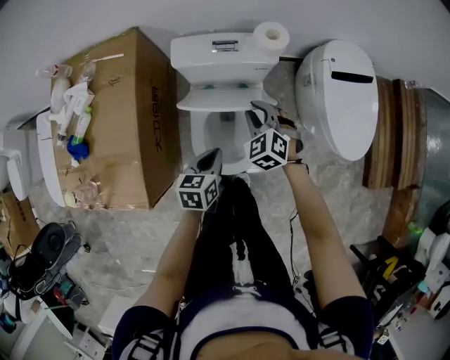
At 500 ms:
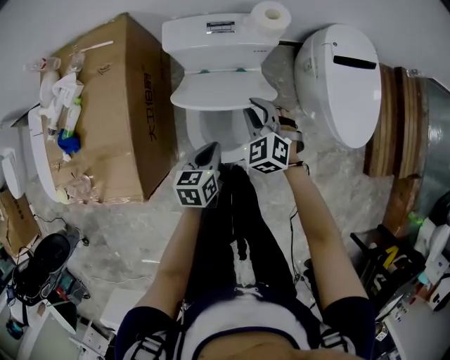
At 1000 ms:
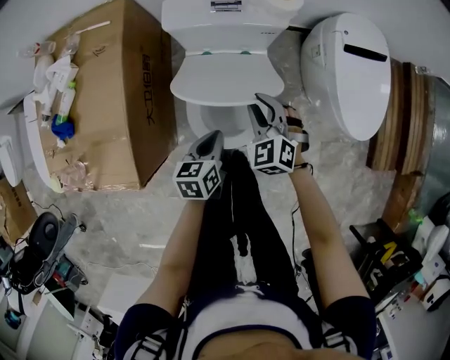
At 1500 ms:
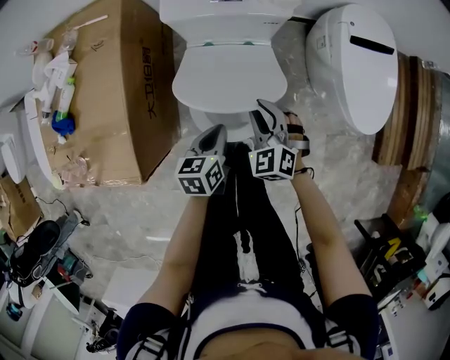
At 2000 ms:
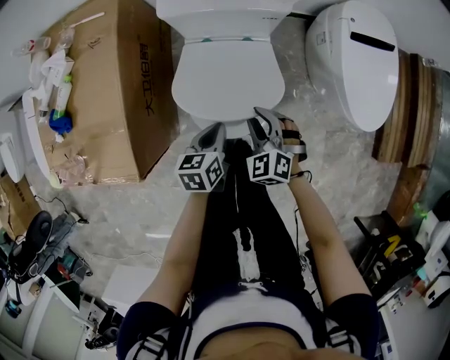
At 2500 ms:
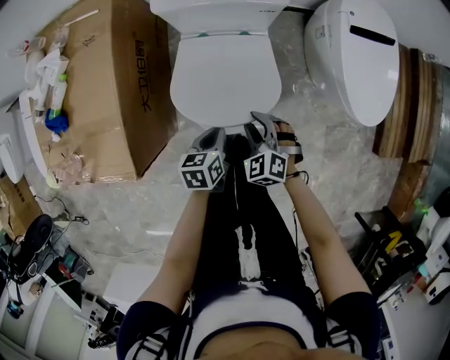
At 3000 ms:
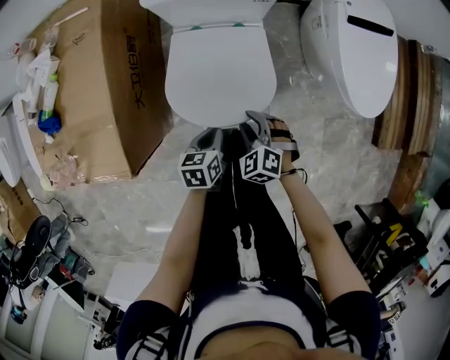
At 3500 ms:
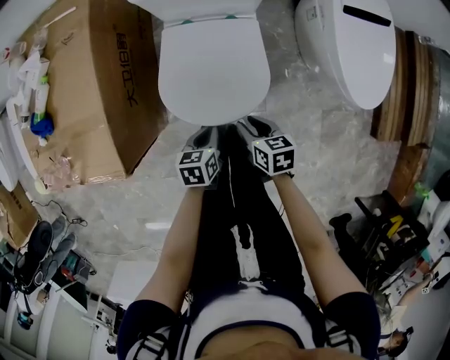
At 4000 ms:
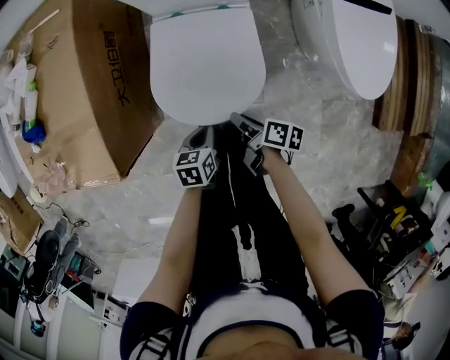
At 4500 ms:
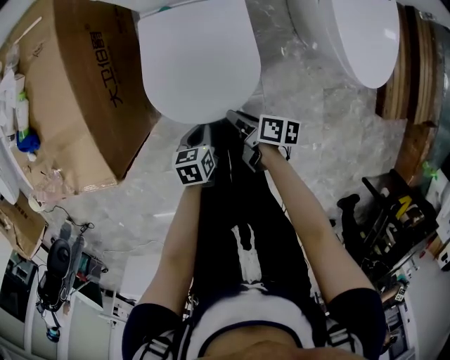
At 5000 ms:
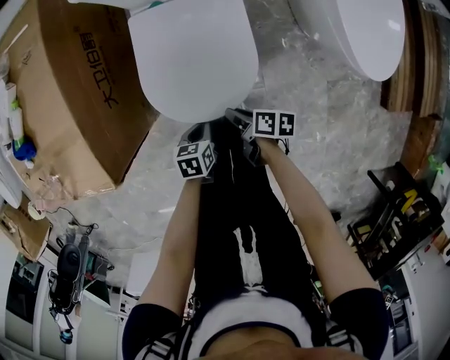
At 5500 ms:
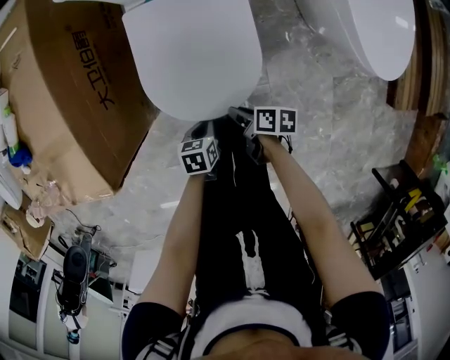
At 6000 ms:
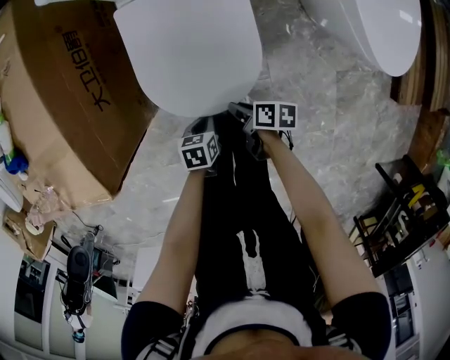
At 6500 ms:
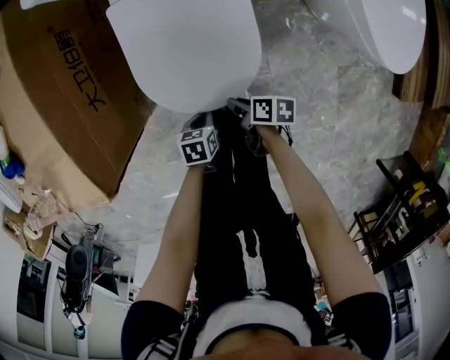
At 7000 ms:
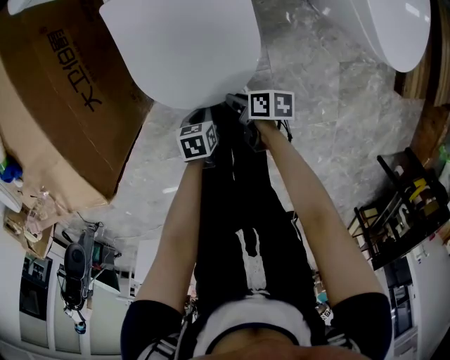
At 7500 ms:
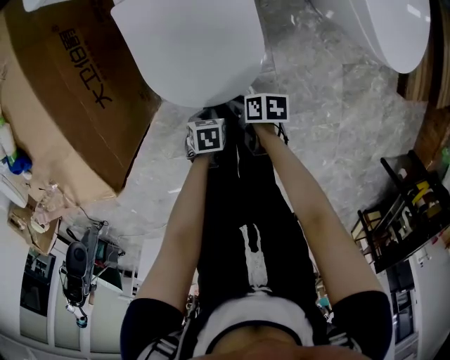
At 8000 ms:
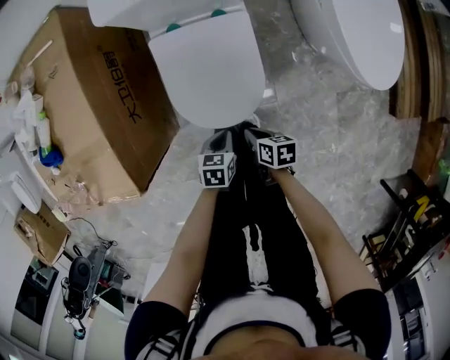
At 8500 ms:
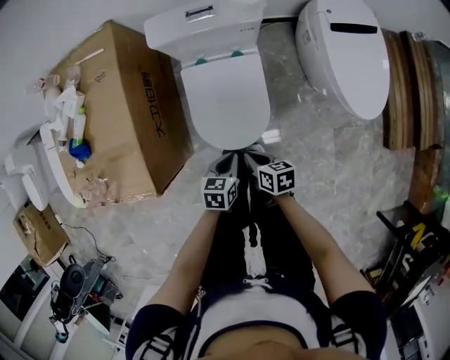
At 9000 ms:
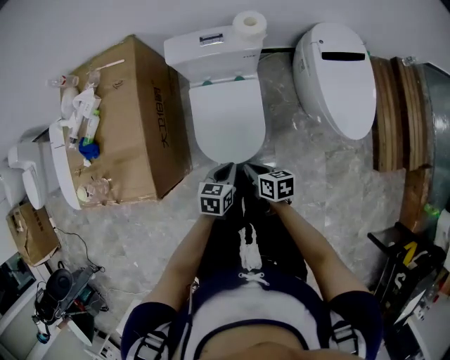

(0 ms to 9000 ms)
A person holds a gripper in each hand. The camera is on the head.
0 ms - 2000 ms: The right gripper heads backward and downward, covering approximately 15 cm, while the left gripper moves downward, approximately 5 cm.
2000 ms - 4500 ms: The two grippers go about 20 cm downward and backward. The right gripper rolls clockwise, seen from behind, by roughly 110 degrees.
4500 ms - 7000 ms: The two grippers go about 15 cm downward.
7000 ms - 9000 ms: Both grippers move upward, about 35 cm. The left gripper rotates approximately 30 degrees, while the right gripper turns by roughly 40 degrees.

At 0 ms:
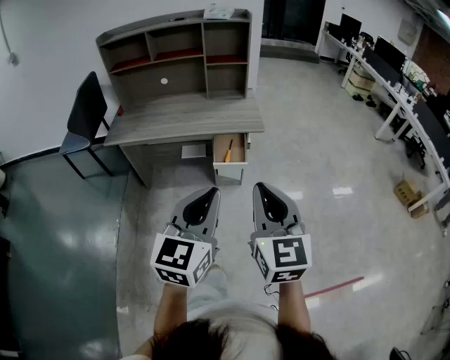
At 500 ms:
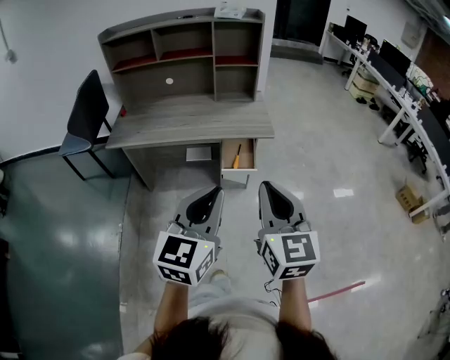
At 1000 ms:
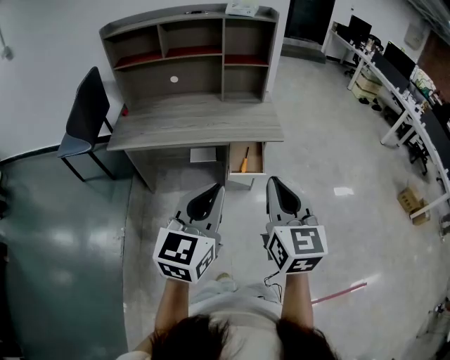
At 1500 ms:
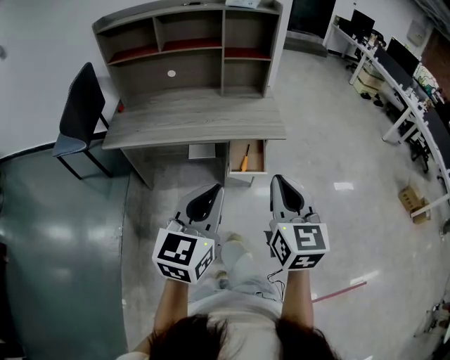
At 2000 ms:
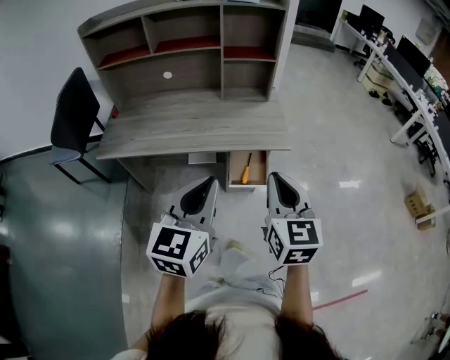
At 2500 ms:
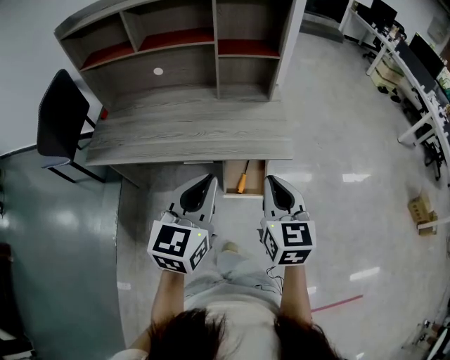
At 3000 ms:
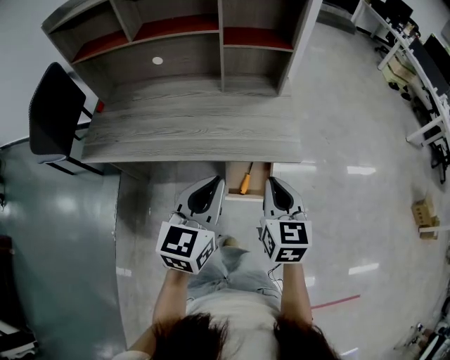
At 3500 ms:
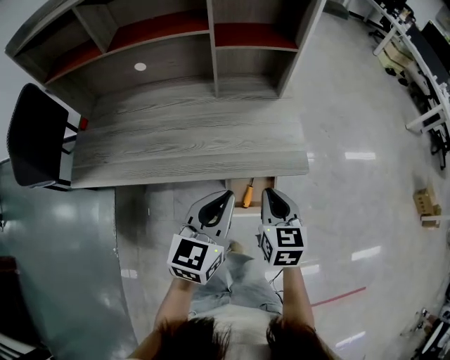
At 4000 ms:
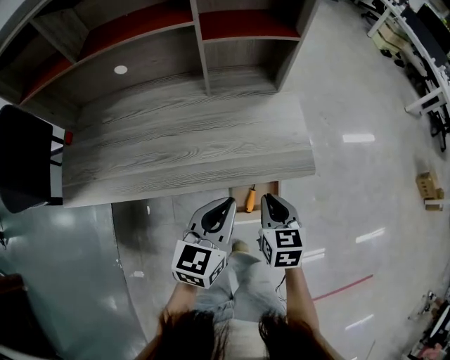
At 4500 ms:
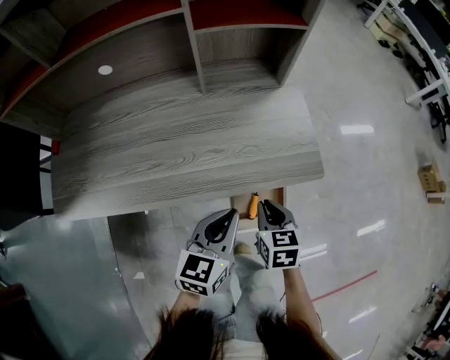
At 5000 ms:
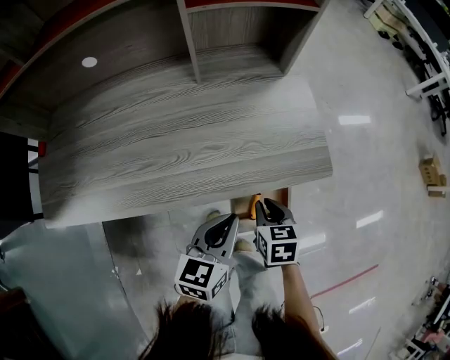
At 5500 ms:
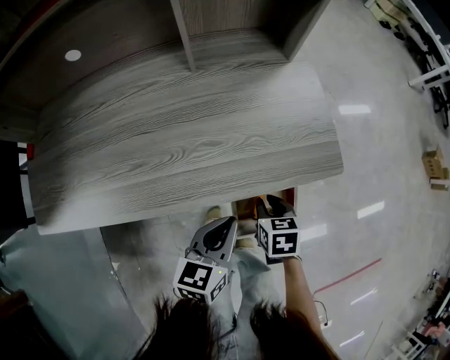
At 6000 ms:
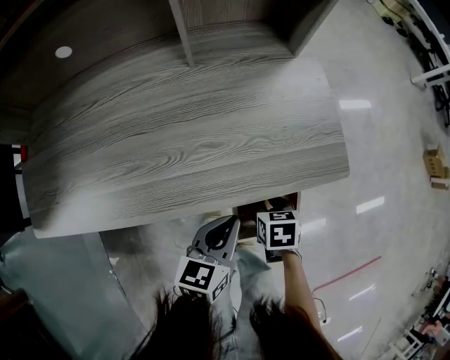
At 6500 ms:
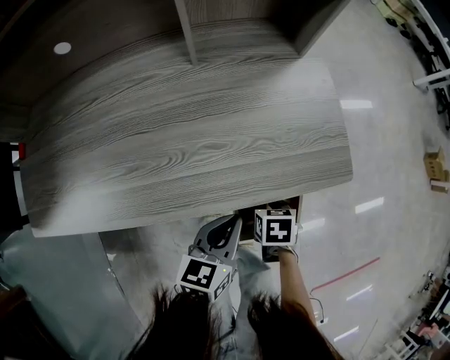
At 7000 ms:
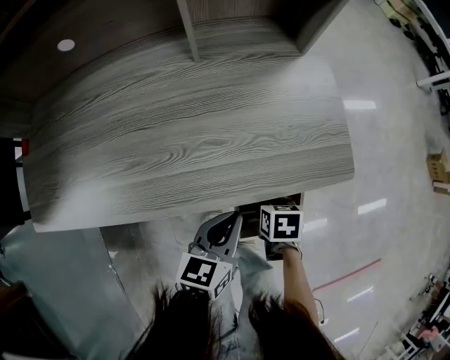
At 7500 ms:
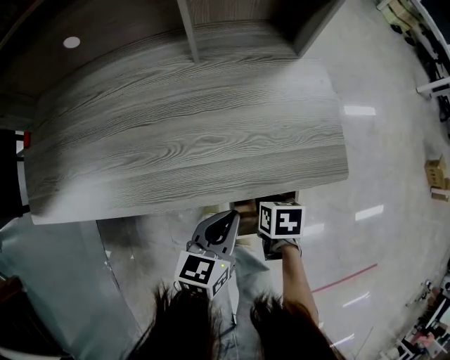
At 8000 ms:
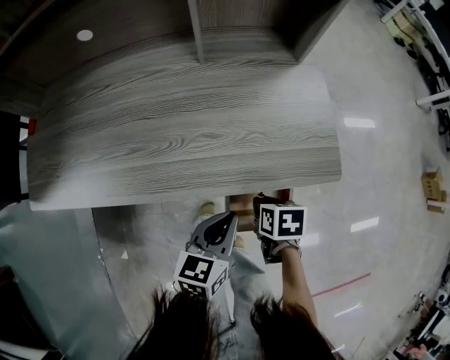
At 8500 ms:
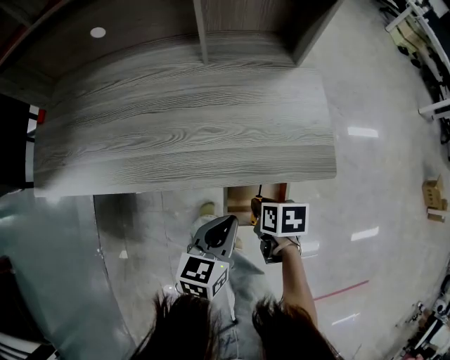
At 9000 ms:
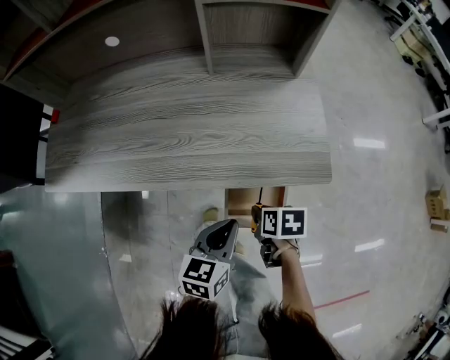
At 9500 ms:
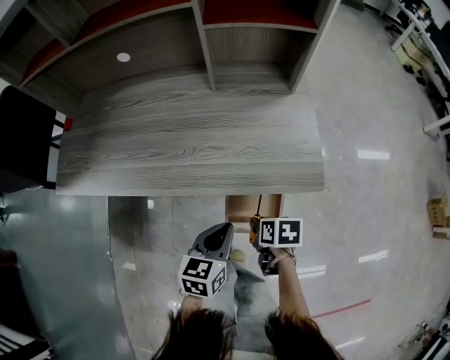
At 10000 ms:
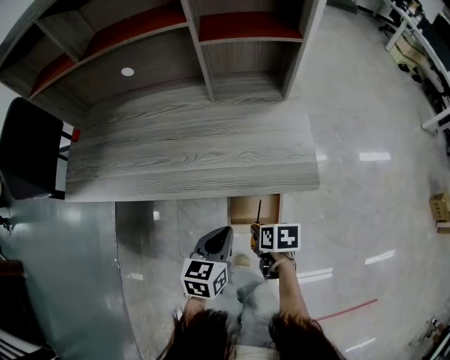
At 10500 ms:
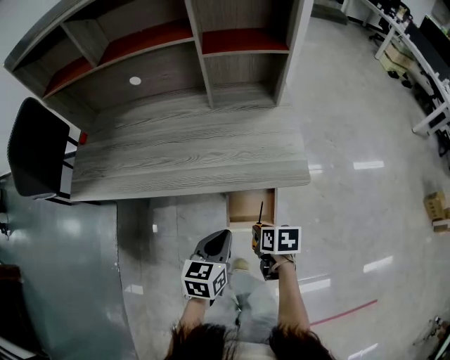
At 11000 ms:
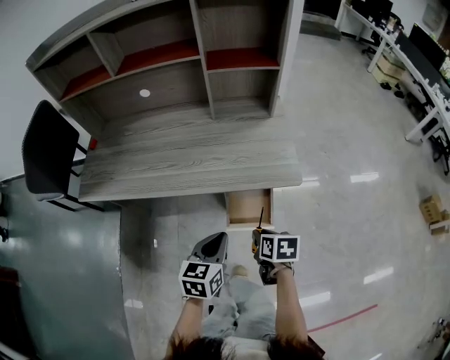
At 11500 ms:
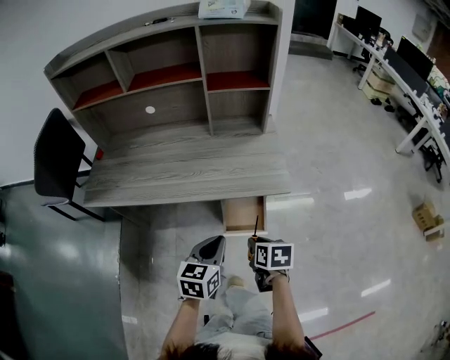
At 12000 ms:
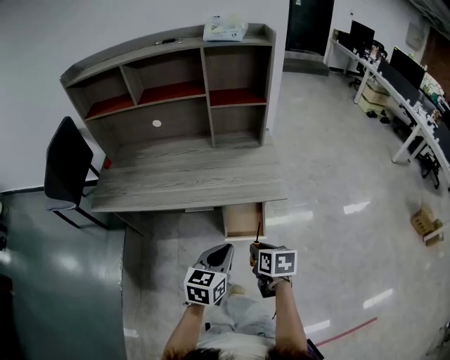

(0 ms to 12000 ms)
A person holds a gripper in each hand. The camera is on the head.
0 ms - 2000 ms: The left gripper moves forward and to the left, roughly 30 cm; the right gripper shifts about 25 cm forward.
2000 ms - 4000 ms: The right gripper goes some 35 cm downward and forward, and changes its angle by some 30 degrees, while the left gripper moves forward and downward, about 35 cm.
4000 ms - 6000 ms: The two grippers go approximately 20 cm downward. The right gripper rotates approximately 30 degrees.
6000 ms - 8000 ms: There are only small adjustments of the grippers.
8000 ms - 10000 ms: The left gripper travels upward by some 5 cm. The right gripper travels backward and upward by some 10 cm.
10000 ms - 12000 ms: The two grippers go some 20 cm upward and backward. The right gripper changes its angle by approximately 20 degrees.

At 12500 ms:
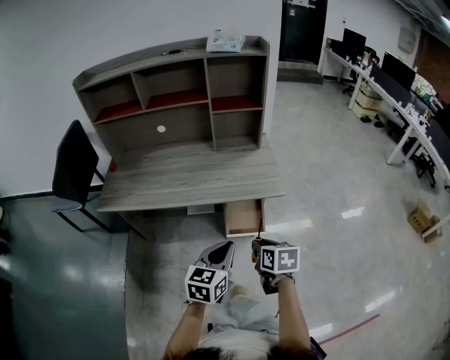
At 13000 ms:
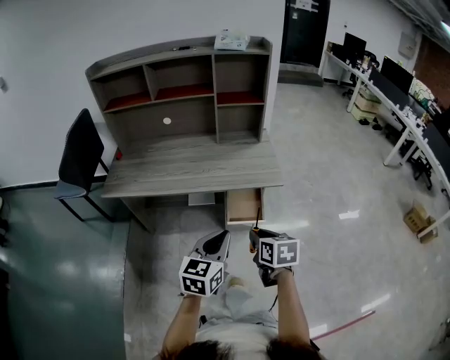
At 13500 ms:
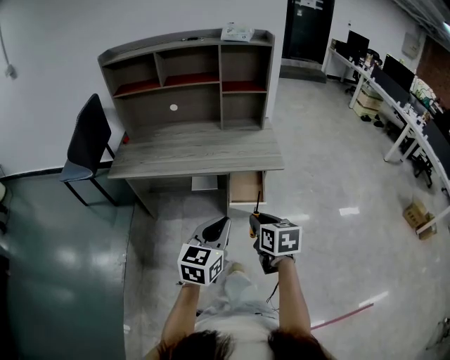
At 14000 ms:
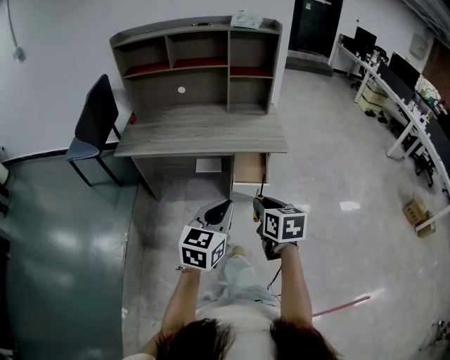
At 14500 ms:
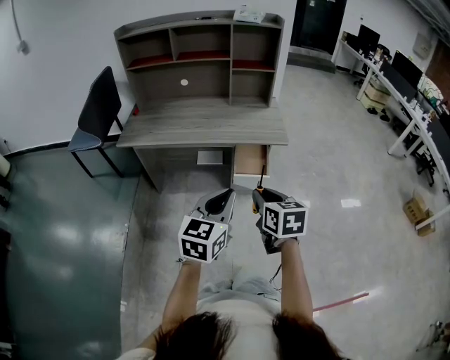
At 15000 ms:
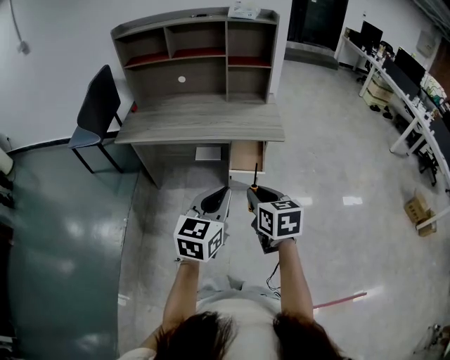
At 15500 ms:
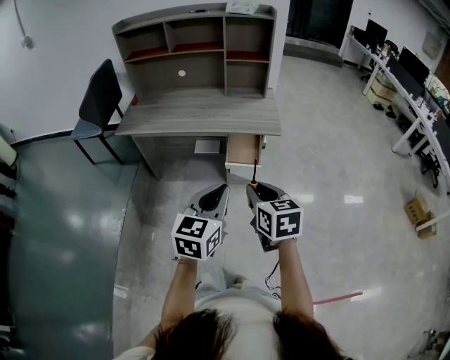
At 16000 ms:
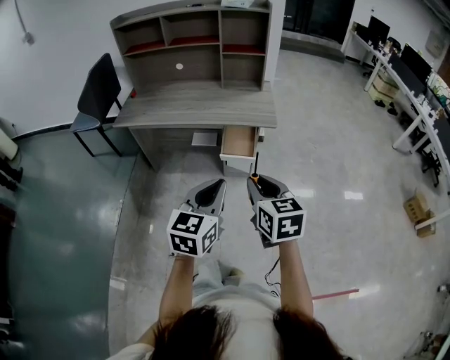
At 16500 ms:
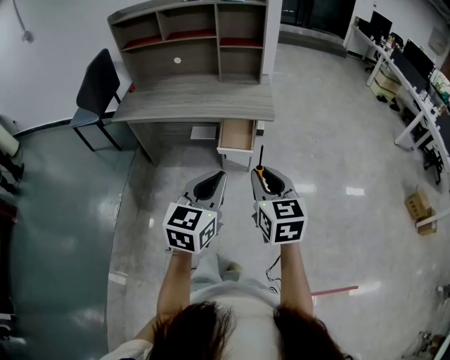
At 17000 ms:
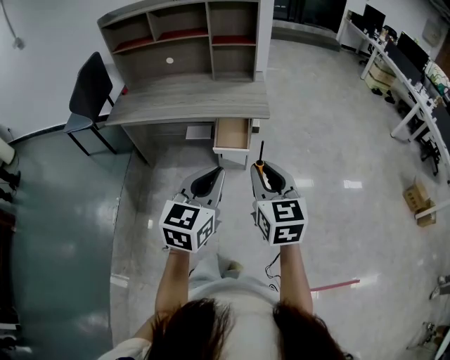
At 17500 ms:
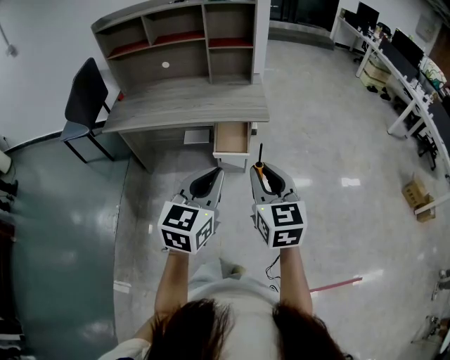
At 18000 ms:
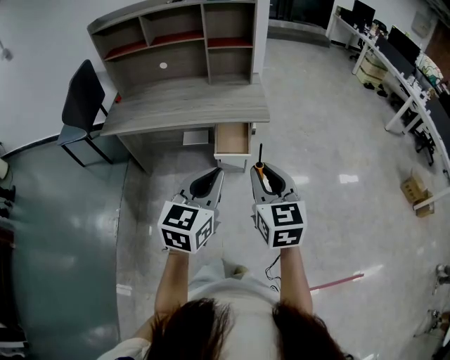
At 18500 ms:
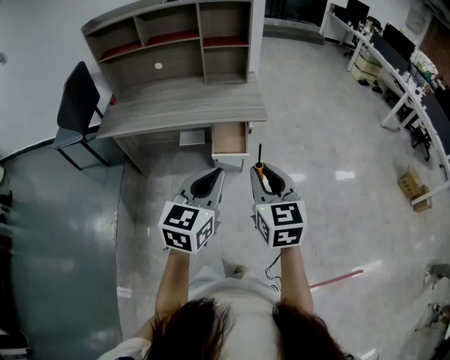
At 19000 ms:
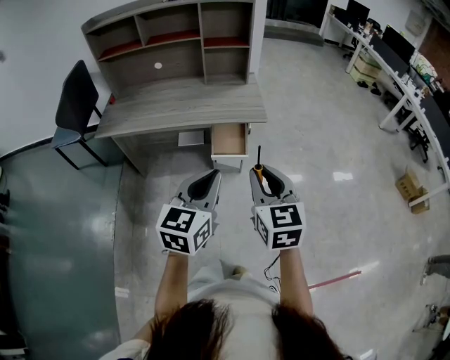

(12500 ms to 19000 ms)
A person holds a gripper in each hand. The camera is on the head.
12500 ms - 14500 ms: Both grippers travel together backward and upward, about 20 cm.
14500 ms - 17000 ms: The right gripper heads to the right, upward and backward, covering approximately 15 cm, and rotates some 20 degrees; the left gripper moves to the right, approximately 10 cm.
17000 ms - 19000 ms: The right gripper shifts by some 5 cm. Meanwhile the left gripper moves to the left, about 5 cm.
